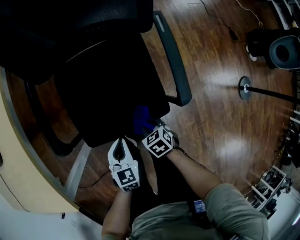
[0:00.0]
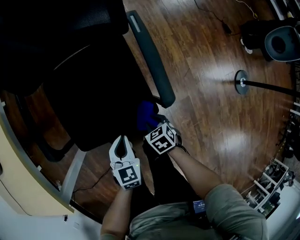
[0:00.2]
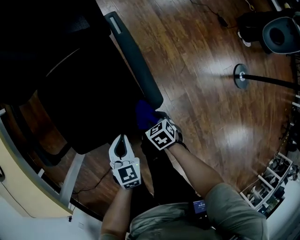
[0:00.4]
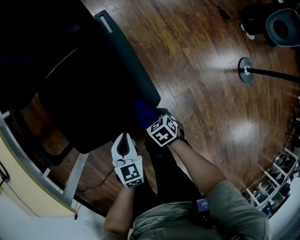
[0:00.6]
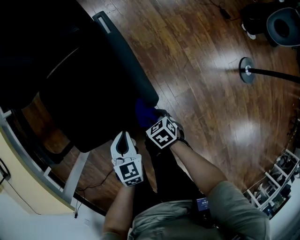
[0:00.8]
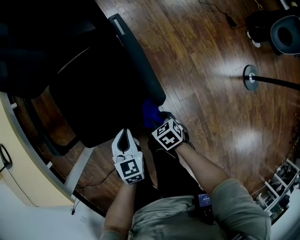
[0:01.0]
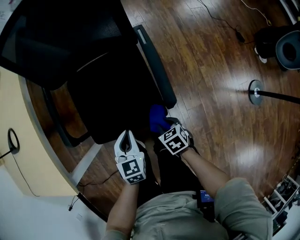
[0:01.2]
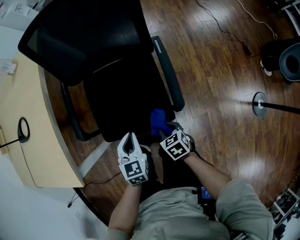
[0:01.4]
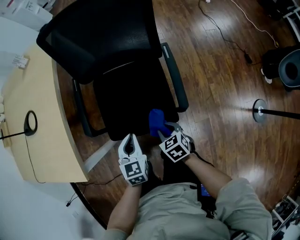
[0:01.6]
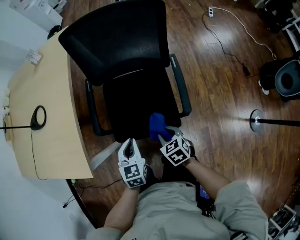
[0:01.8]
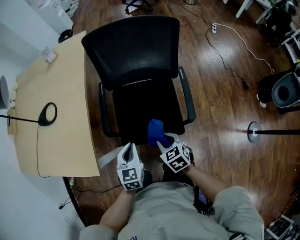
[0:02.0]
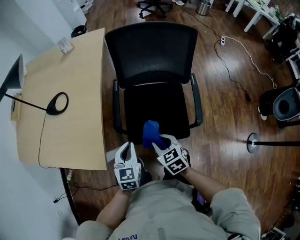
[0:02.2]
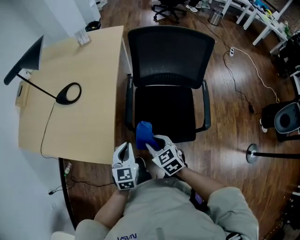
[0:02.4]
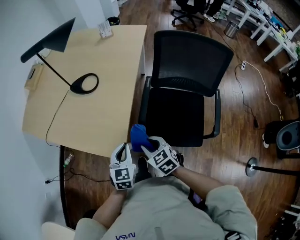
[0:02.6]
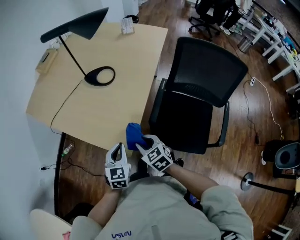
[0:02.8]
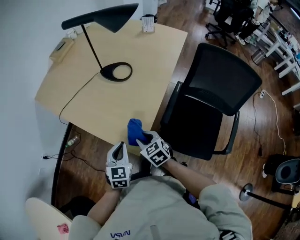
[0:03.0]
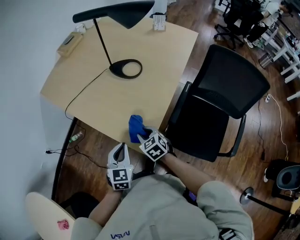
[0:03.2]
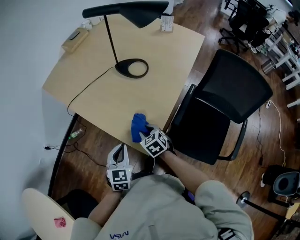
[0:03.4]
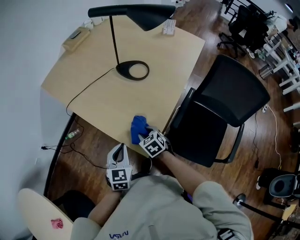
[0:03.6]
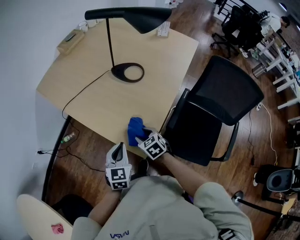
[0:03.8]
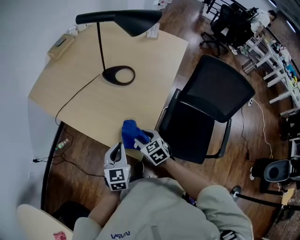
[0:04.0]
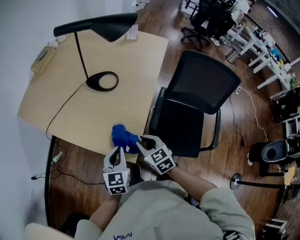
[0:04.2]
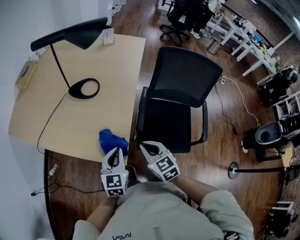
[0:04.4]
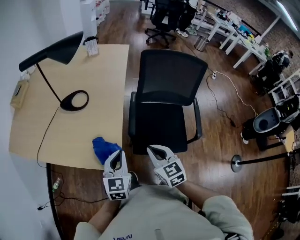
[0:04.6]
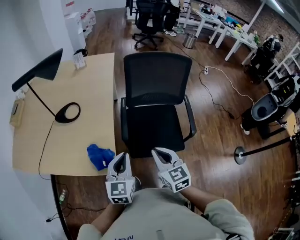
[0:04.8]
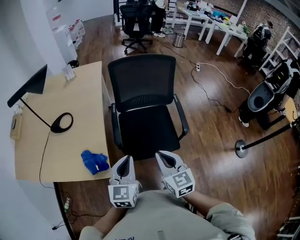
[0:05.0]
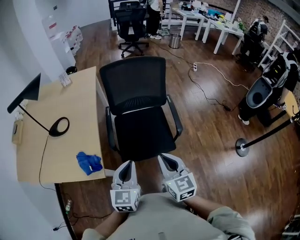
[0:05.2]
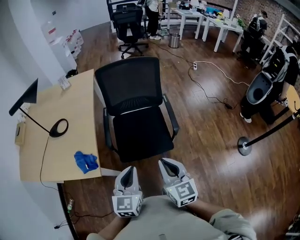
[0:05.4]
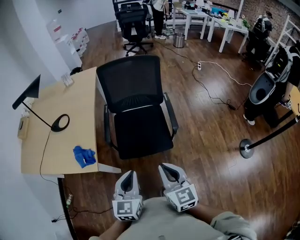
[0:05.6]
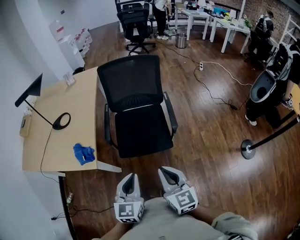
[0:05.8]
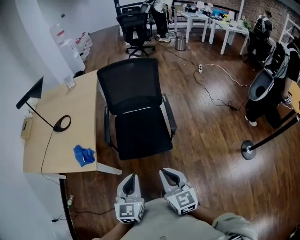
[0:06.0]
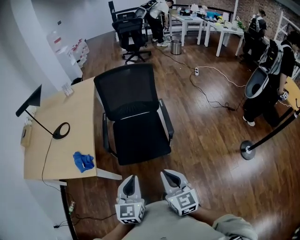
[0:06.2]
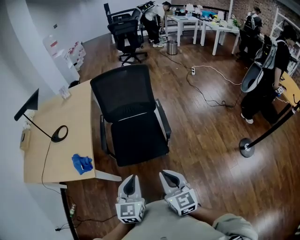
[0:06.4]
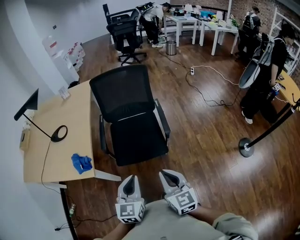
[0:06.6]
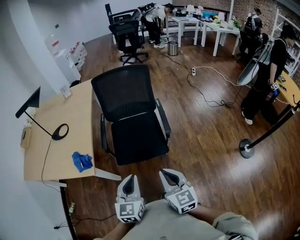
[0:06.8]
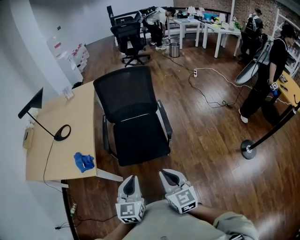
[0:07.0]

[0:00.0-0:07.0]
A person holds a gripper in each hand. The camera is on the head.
0:00.0 to 0:01.4: Both grippers move upward and to the right, some 15 cm.
0:01.4 to 0:02.8: Both grippers are carried some 50 cm. The right gripper rotates some 40 degrees. The left gripper changes its angle by roughly 20 degrees.
0:02.8 to 0:04.2: The right gripper is displaced forward by roughly 5 cm, moves about 10 cm downward and comes back, and opens, then closes once more.
0:04.2 to 0:05.6: The pair of grippers is taken roughly 40 cm. The left gripper rotates roughly 30 degrees; the right gripper changes its angle by approximately 50 degrees, and closes.
0:05.6 to 0:07.0: The right gripper travels backward by roughly 5 cm, while the left gripper changes place by some 5 cm.

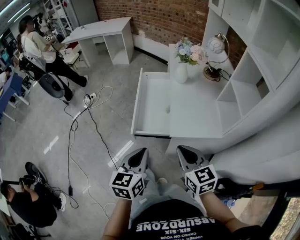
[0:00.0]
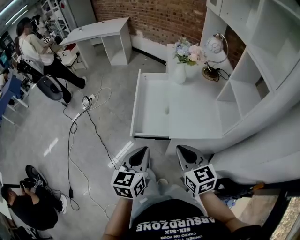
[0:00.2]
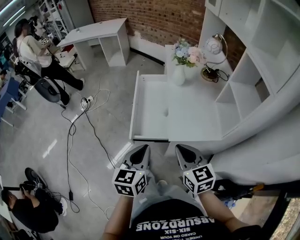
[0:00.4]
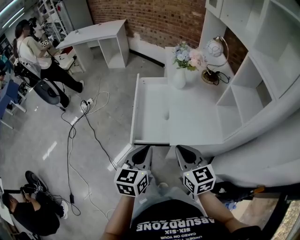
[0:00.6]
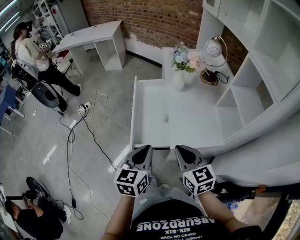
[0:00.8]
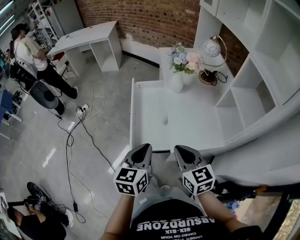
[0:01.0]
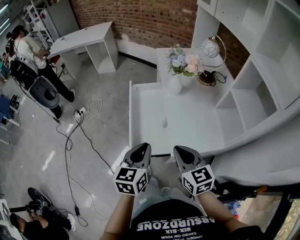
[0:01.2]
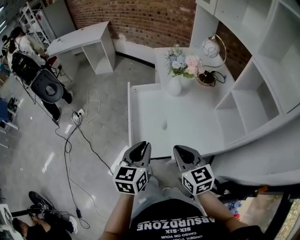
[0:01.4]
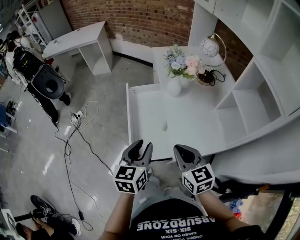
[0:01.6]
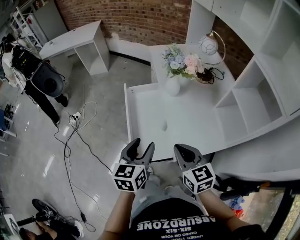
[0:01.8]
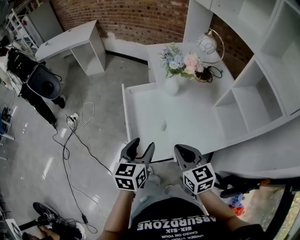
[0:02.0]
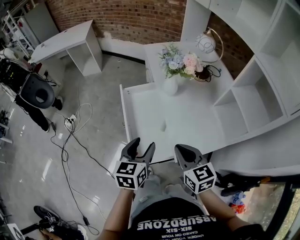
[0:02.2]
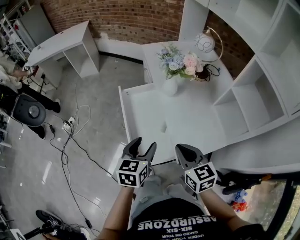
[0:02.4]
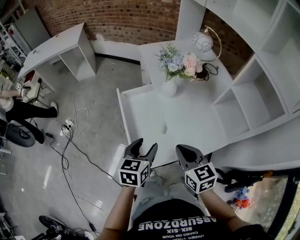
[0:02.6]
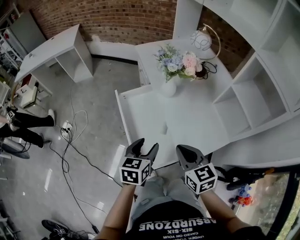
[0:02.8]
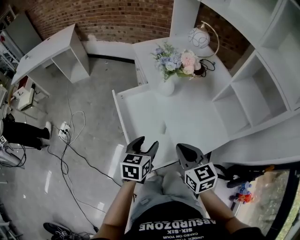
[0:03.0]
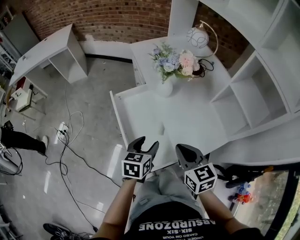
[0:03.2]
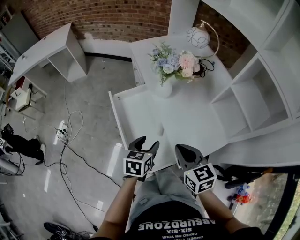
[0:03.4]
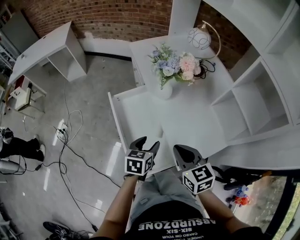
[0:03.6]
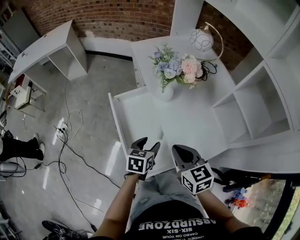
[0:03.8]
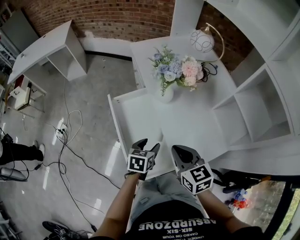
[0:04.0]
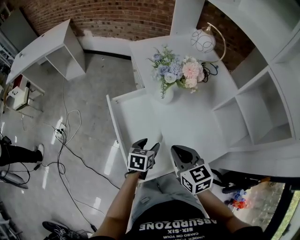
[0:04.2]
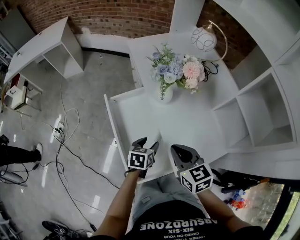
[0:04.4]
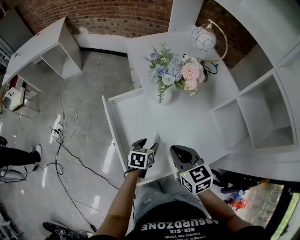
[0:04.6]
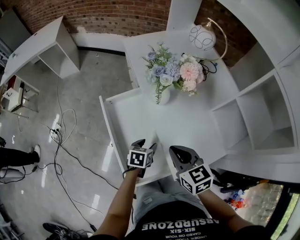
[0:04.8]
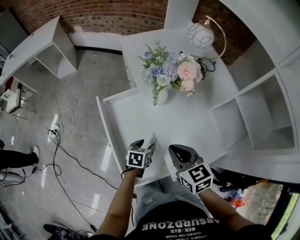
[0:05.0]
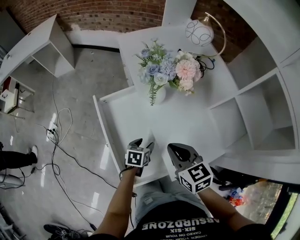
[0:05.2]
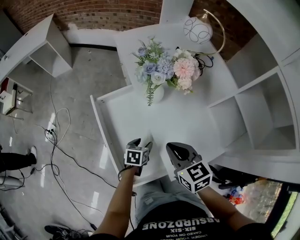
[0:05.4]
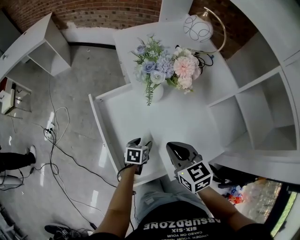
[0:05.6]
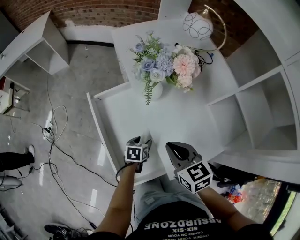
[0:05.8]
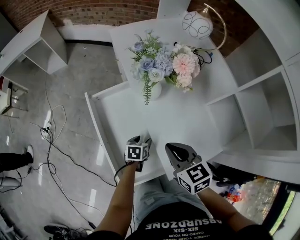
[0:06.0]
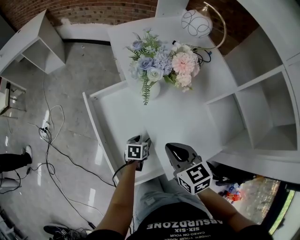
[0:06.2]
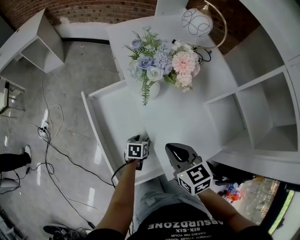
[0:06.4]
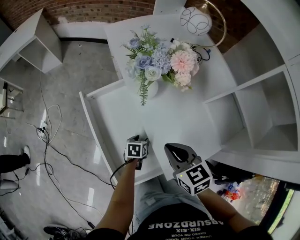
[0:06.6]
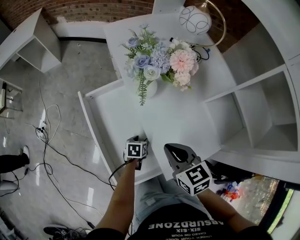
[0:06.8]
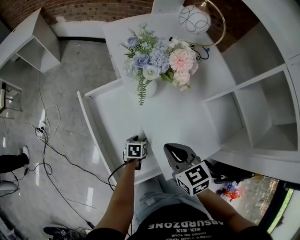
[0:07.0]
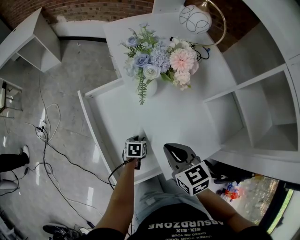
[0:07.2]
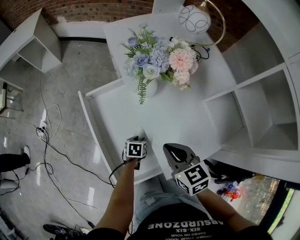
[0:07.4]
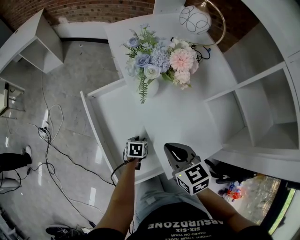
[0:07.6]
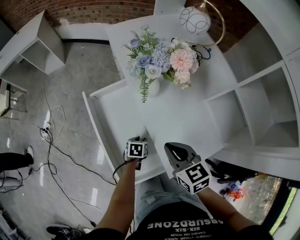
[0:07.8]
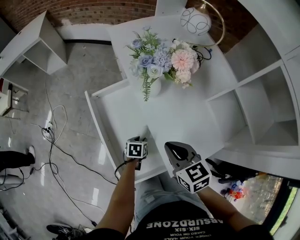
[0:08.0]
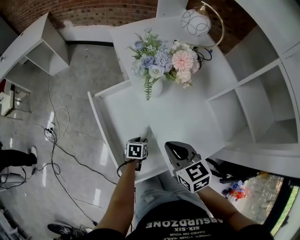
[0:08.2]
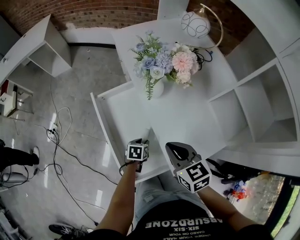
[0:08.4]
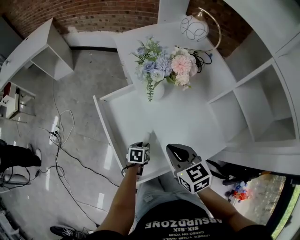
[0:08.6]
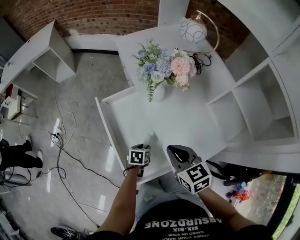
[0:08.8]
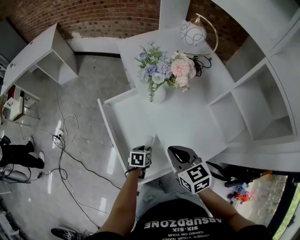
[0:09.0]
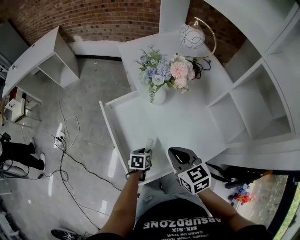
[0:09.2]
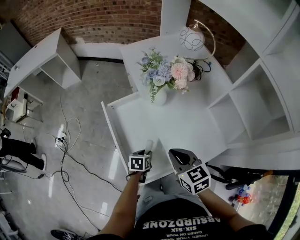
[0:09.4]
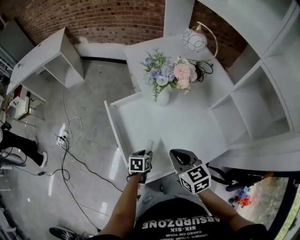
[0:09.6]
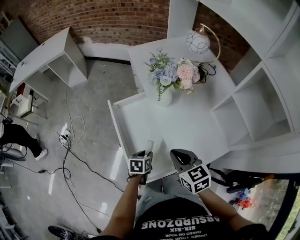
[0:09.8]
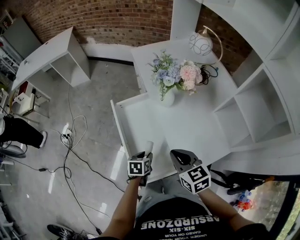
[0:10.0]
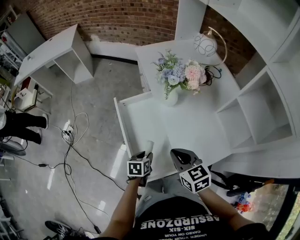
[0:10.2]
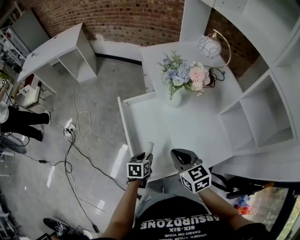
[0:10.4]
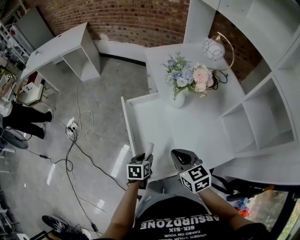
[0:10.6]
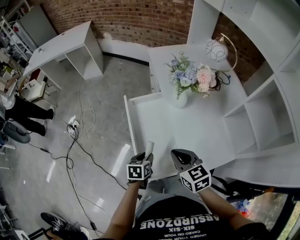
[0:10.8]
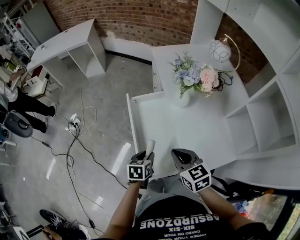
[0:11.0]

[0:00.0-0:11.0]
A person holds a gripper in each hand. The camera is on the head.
0:00.0 to 0:01.6: The grippers both shift forward by approximately 20 cm. The left gripper opens its fingers.
0:01.6 to 0:03.2: The right gripper goes some 10 cm forward; the left gripper is displaced forward and downward by approximately 15 cm, rotates roughly 30 degrees, and opens.
0:03.2 to 0:04.8: The left gripper goes approximately 20 cm downward and forward. Meanwhile the right gripper heads forward, covering some 10 cm.
0:04.8 to 0:06.2: The left gripper moves downward, approximately 10 cm.
0:06.2 to 0:07.8: The left gripper closes up.
0:07.8 to 0:09.4: The right gripper shifts by roughly 5 cm. The left gripper shifts roughly 10 cm upward and backward.
0:09.4 to 0:11.0: The left gripper is displaced upward and to the left by roughly 15 cm. Meanwhile the right gripper moves to the left, approximately 5 cm.

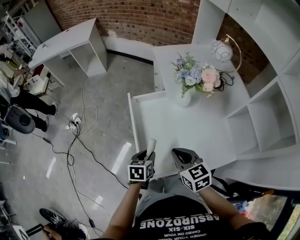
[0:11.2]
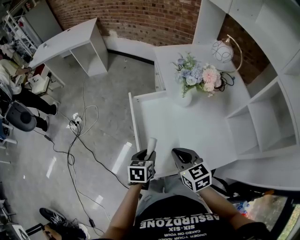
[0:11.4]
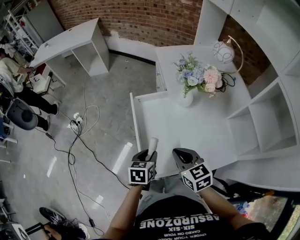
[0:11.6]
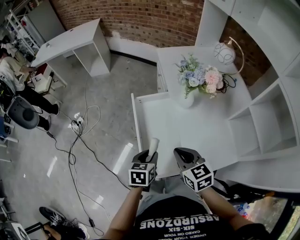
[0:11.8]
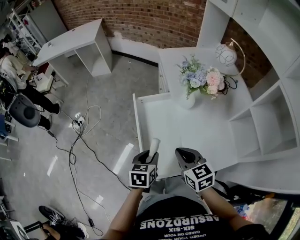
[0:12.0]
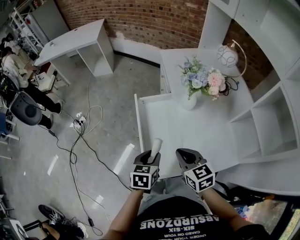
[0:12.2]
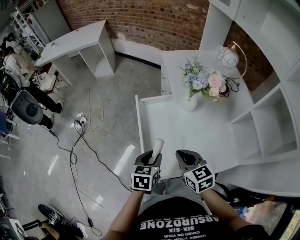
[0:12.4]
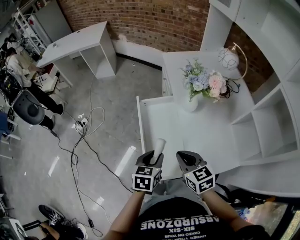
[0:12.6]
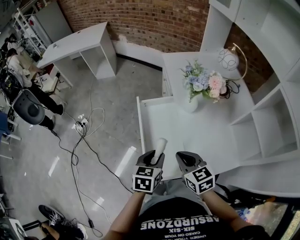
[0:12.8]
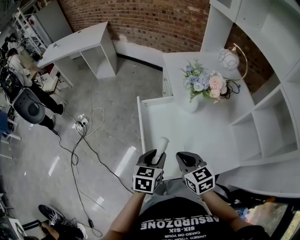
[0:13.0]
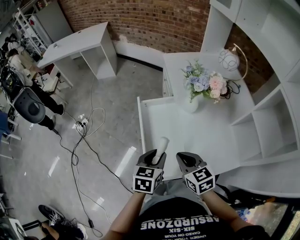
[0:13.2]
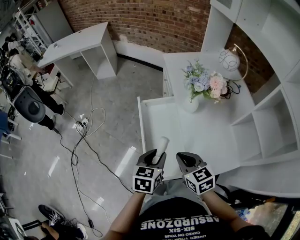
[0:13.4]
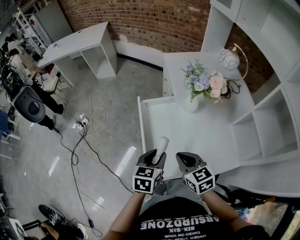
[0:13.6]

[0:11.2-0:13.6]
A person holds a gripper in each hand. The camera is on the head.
0:11.2 to 0:12.4: The left gripper shifts roughly 10 cm upward.
0:12.4 to 0:13.6: The grippers make only small movements.

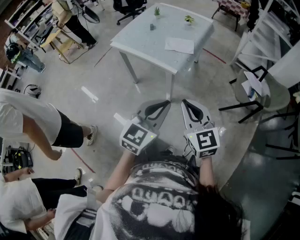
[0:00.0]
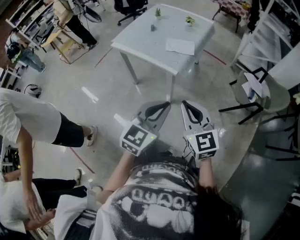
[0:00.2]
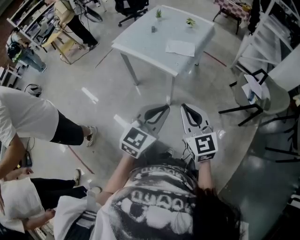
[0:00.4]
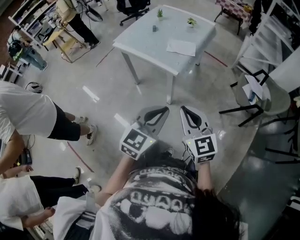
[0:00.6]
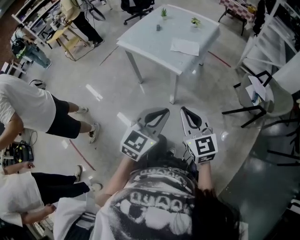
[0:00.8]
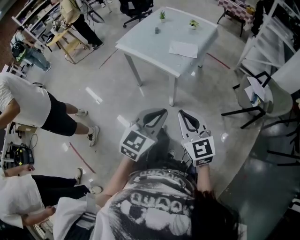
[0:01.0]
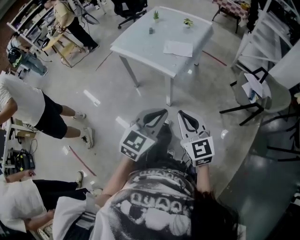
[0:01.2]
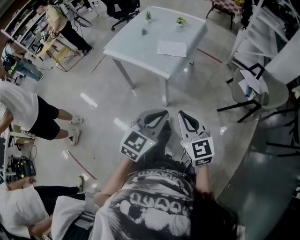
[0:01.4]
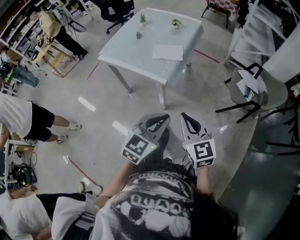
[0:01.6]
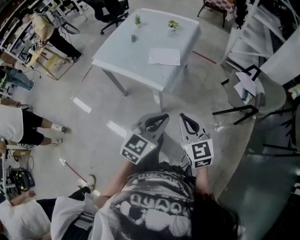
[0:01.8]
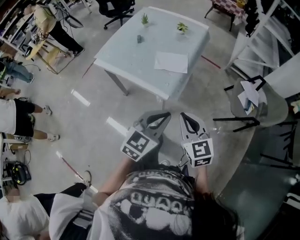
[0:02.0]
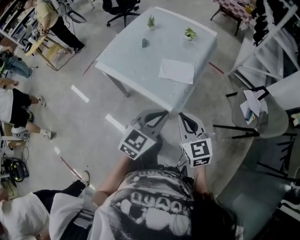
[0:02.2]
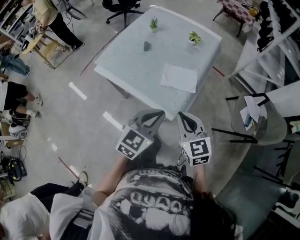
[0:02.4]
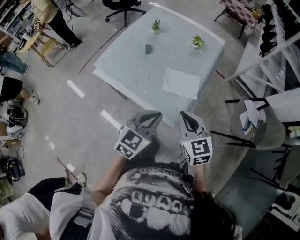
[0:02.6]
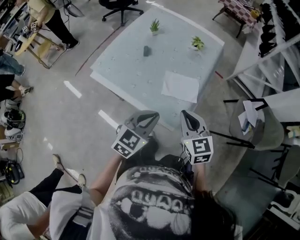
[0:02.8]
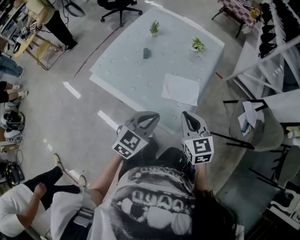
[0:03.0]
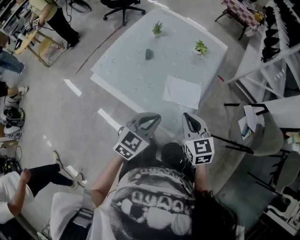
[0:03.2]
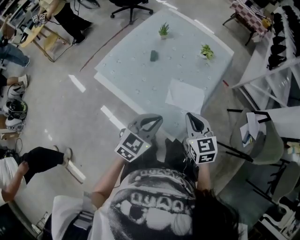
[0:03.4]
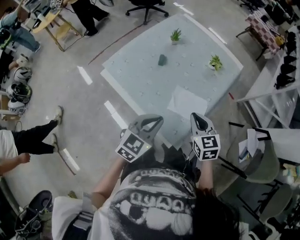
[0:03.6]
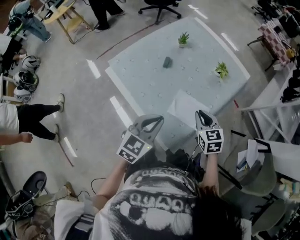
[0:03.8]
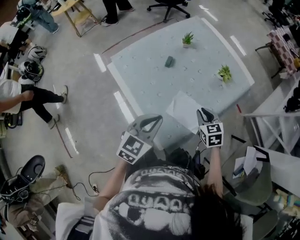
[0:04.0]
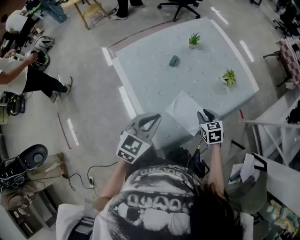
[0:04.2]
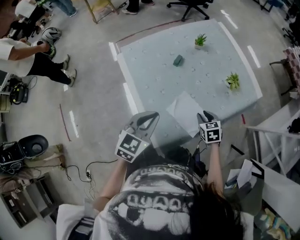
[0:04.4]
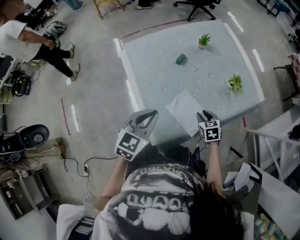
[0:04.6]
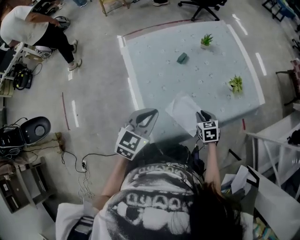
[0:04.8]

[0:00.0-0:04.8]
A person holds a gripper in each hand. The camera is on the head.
0:00.0 to 0:01.6: The left gripper ends up roughly 5 cm from where it was, while the right gripper moves some 5 cm.
0:01.6 to 0:03.2: The right gripper travels forward by roughly 35 cm. The left gripper is displaced forward and to the left by approximately 40 cm.
0:03.2 to 0:04.8: The right gripper is displaced downward by roughly 20 cm, and rotates approximately 40 degrees; the left gripper shifts by approximately 5 cm, and swivels about 50 degrees.
